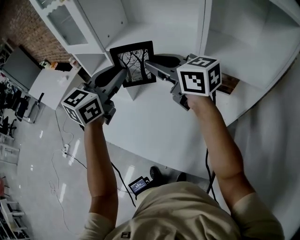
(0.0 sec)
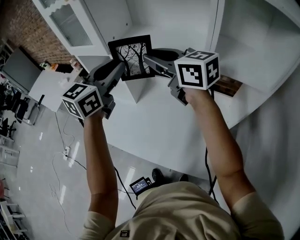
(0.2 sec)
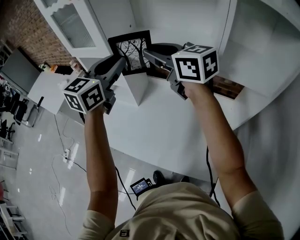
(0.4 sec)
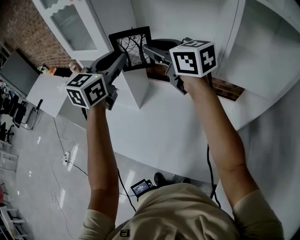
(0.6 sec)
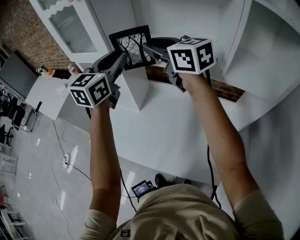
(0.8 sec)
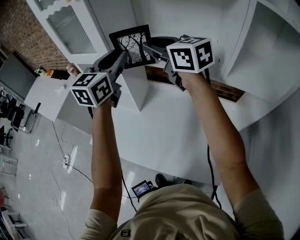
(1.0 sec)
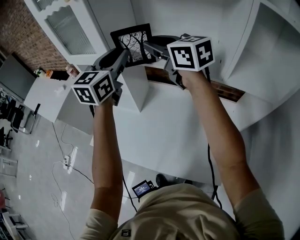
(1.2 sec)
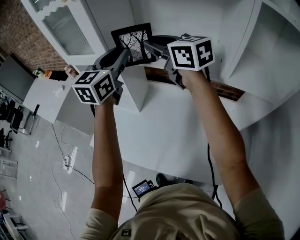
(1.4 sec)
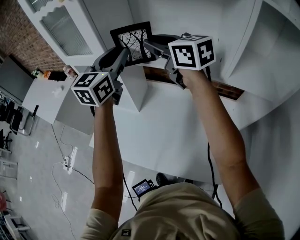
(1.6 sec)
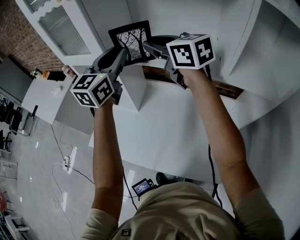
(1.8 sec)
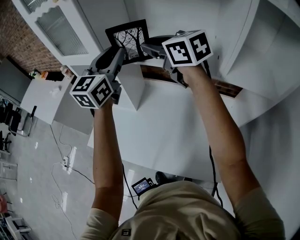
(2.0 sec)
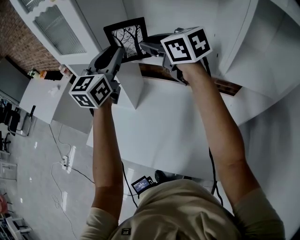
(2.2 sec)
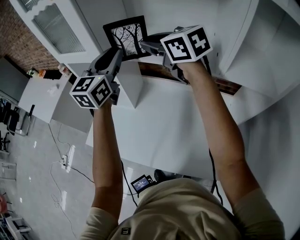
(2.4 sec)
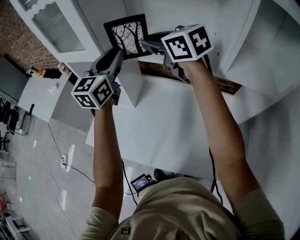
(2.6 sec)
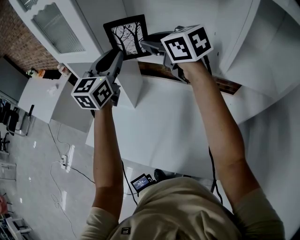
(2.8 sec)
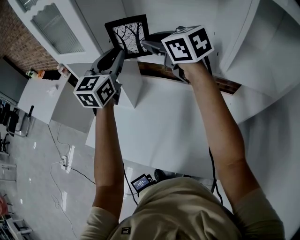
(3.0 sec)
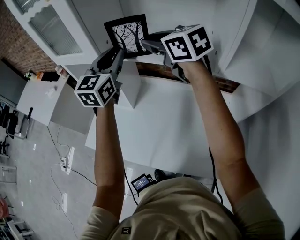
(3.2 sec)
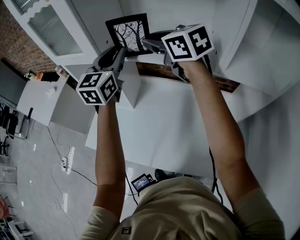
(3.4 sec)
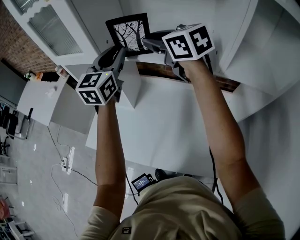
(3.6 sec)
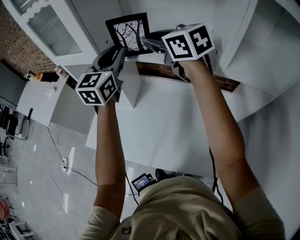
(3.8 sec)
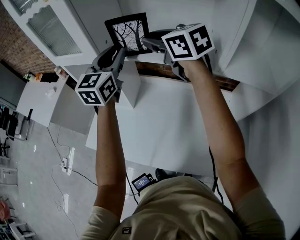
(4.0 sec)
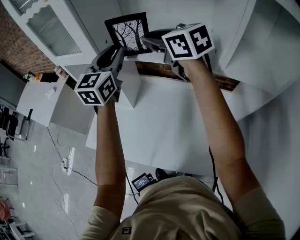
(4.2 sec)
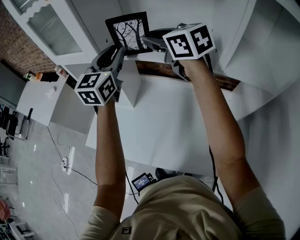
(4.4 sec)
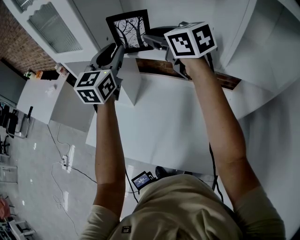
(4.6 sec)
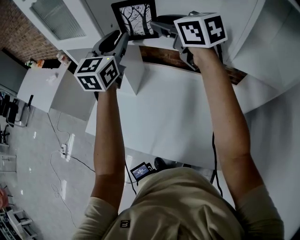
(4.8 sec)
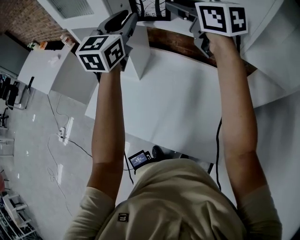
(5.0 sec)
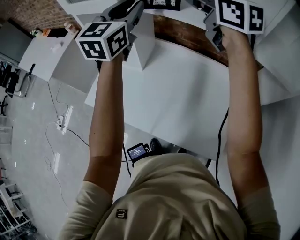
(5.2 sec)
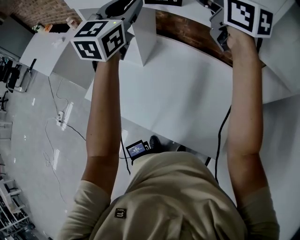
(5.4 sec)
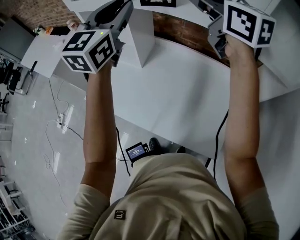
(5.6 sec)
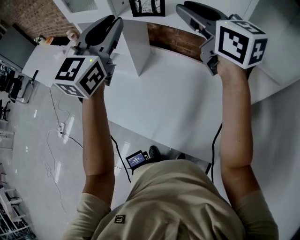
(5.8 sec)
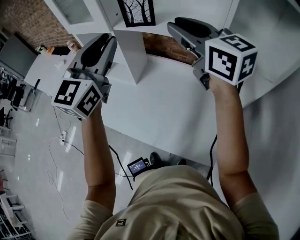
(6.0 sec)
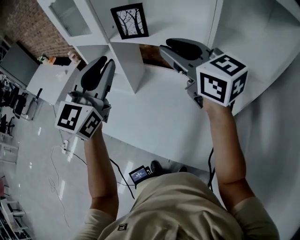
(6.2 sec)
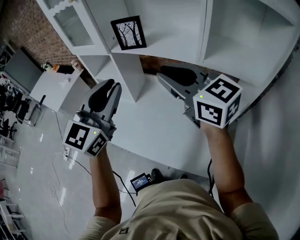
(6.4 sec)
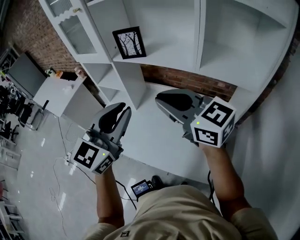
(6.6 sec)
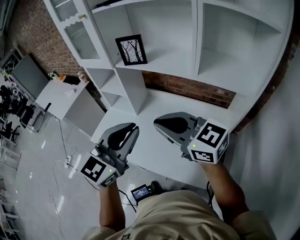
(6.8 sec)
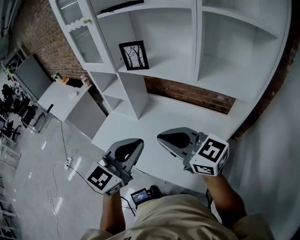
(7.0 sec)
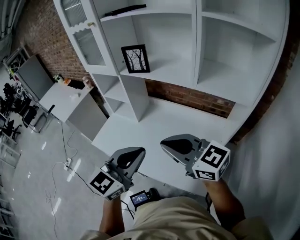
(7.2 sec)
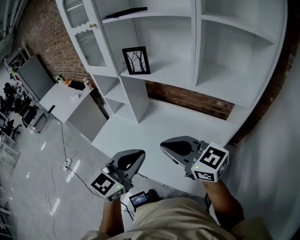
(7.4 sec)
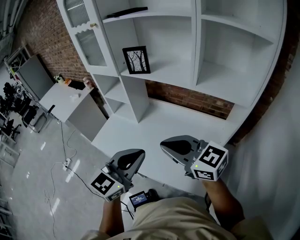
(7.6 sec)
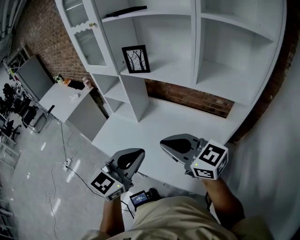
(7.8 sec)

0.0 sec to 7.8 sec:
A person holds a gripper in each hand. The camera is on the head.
0.0 sec to 1.6 sec: The two grippers go about 15 cm forward.
1.6 sec to 3.2 sec: The grippers make only small movements.
3.2 sec to 4.6 sec: Both grippers stay put.
4.6 sec to 6.2 sec: The two grippers go approximately 20 cm backward.
6.2 sec to 7.8 sec: The left gripper is displaced backward and downward by some 25 cm, while the right gripper shifts some 20 cm backward, changes its angle by approximately 20 degrees, and closes up.

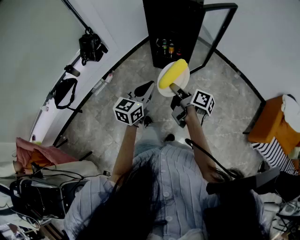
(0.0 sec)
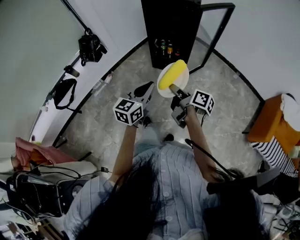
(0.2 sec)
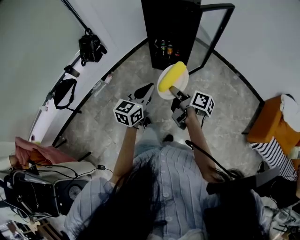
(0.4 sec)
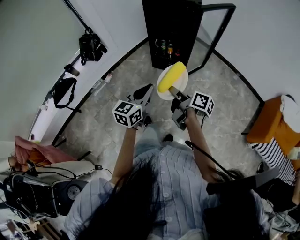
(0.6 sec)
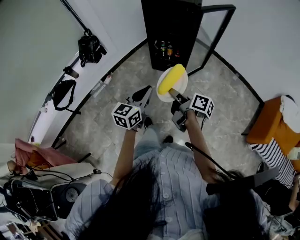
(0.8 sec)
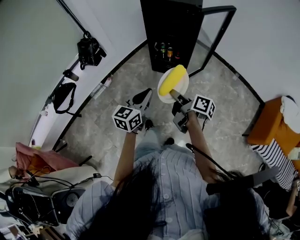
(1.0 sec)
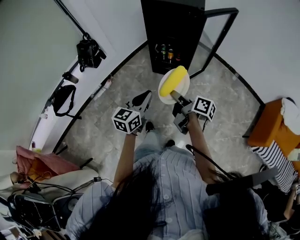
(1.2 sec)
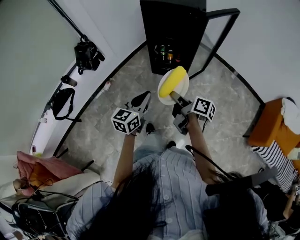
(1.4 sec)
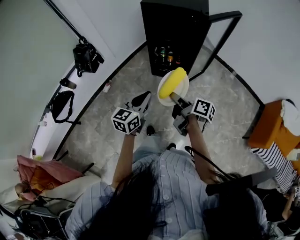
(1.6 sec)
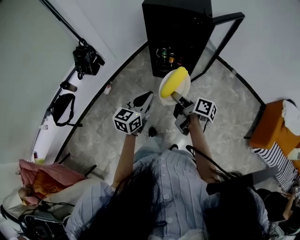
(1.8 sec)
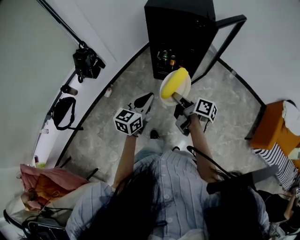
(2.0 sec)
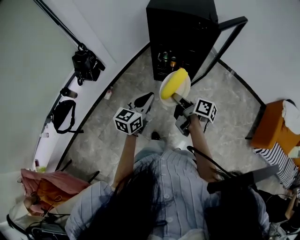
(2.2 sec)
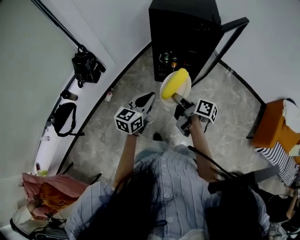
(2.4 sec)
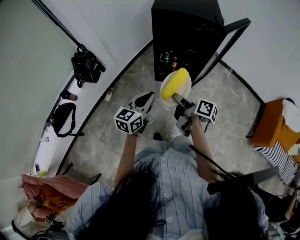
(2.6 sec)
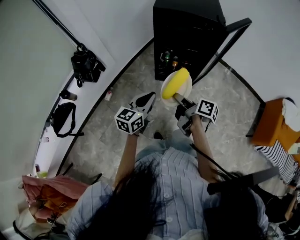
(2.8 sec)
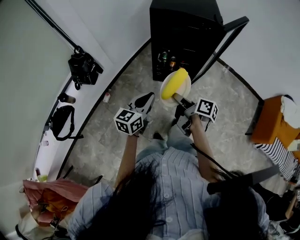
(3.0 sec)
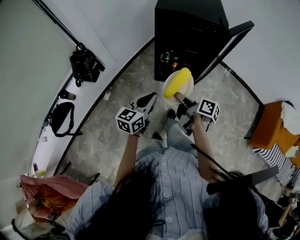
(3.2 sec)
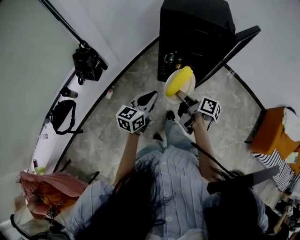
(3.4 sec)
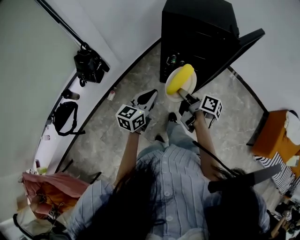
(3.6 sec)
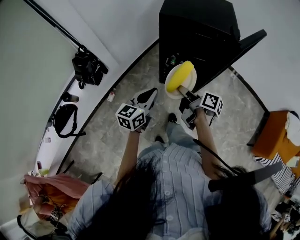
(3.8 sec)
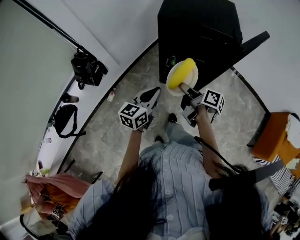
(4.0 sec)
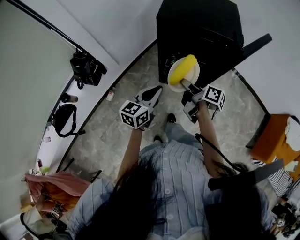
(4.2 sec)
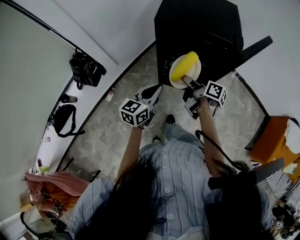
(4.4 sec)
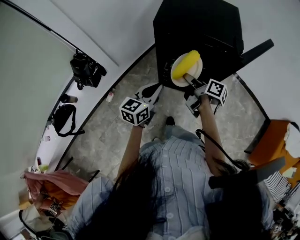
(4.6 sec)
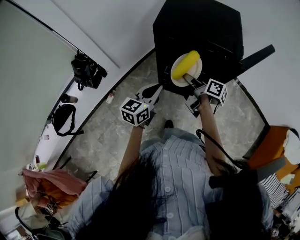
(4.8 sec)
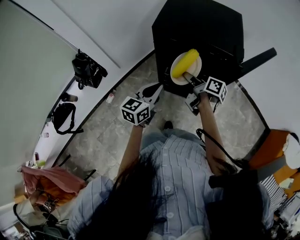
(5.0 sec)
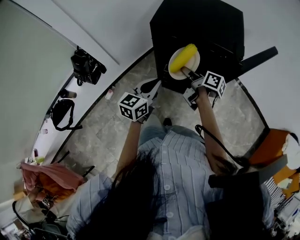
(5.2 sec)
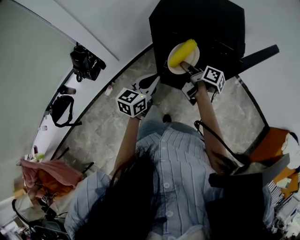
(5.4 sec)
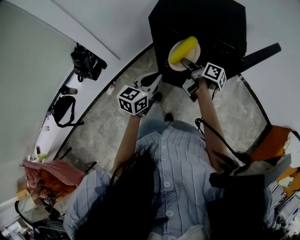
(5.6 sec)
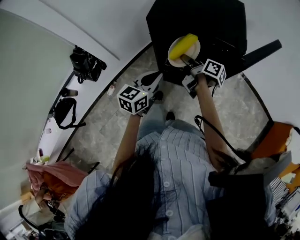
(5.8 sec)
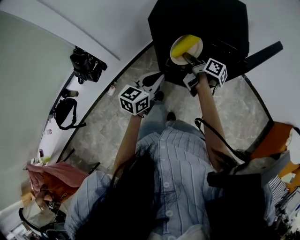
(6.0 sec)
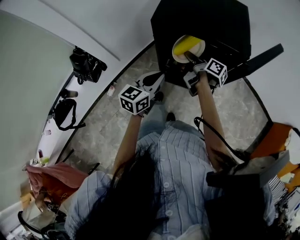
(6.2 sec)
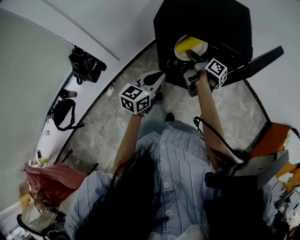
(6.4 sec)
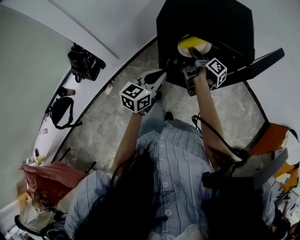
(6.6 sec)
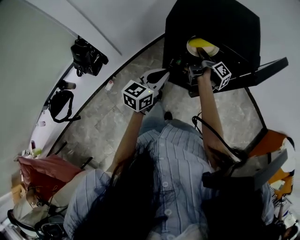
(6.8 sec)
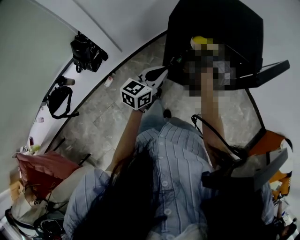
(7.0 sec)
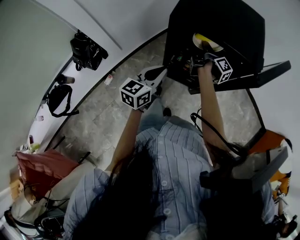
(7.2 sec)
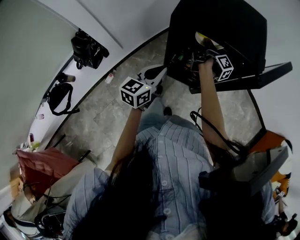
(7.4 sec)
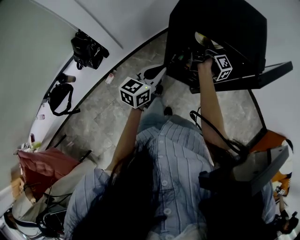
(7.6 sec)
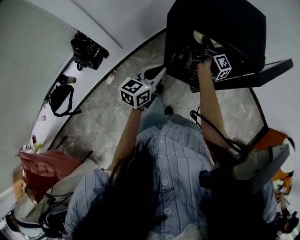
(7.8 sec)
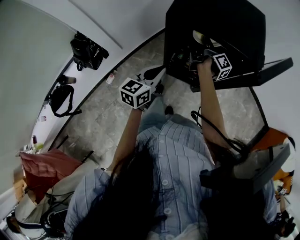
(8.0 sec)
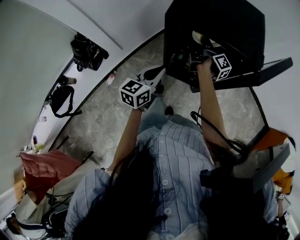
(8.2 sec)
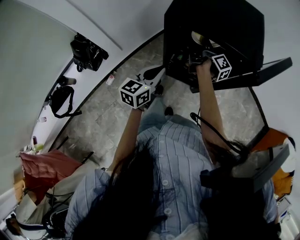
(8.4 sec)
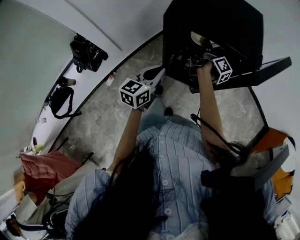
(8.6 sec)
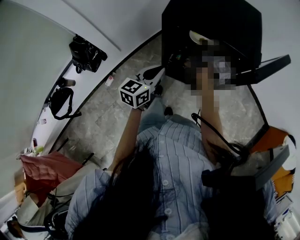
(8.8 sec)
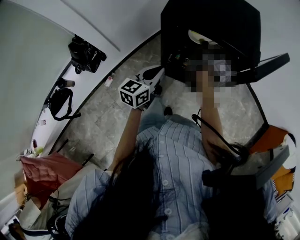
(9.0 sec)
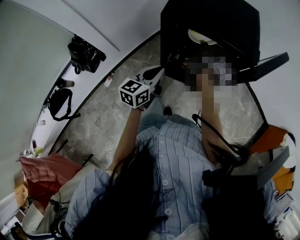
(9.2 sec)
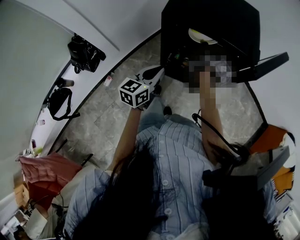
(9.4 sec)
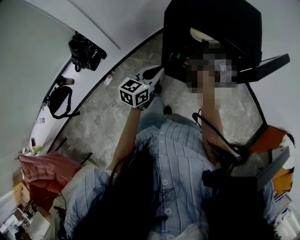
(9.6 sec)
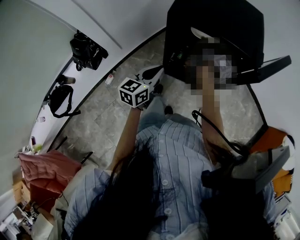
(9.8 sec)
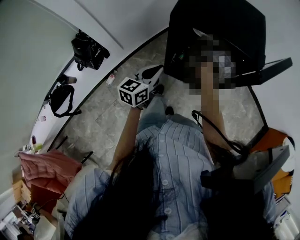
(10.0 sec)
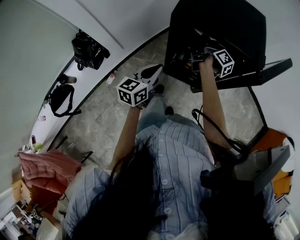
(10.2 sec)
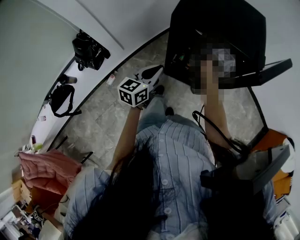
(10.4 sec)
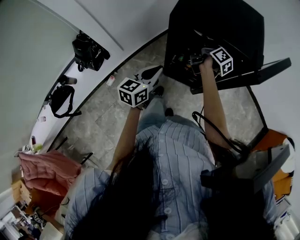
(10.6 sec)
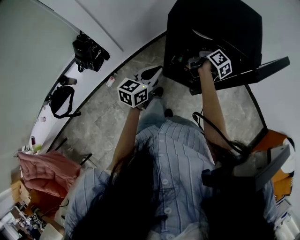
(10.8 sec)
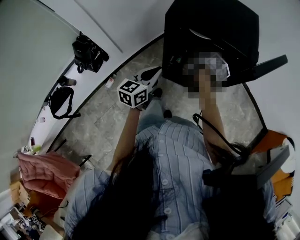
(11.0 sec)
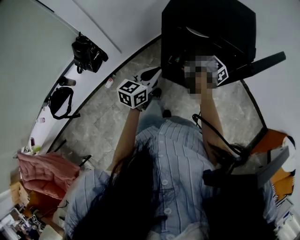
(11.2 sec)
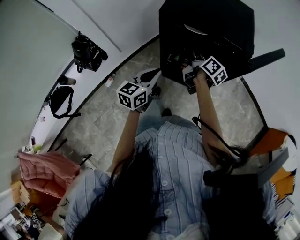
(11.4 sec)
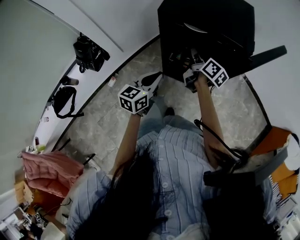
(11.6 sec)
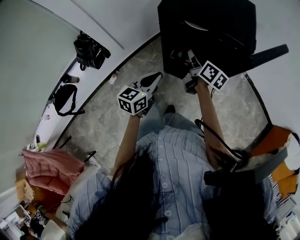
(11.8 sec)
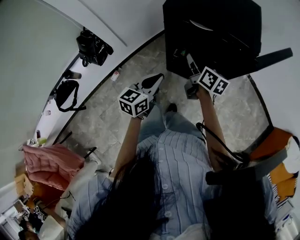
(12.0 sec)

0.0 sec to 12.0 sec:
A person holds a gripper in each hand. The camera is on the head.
0.0 sec to 1.6 sec: Both grippers travel together forward, approximately 10 cm.
1.6 sec to 3.0 sec: The right gripper shifts some 10 cm to the left and forward; the left gripper shifts about 15 cm forward and to the left.
3.0 sec to 4.4 sec: Both grippers move forward, roughly 20 cm.
4.4 sec to 6.0 sec: The right gripper moves forward, approximately 15 cm; the left gripper shifts approximately 5 cm forward.
6.0 sec to 7.6 sec: The right gripper shifts roughly 10 cm forward, and changes its angle by about 30 degrees. Meanwhile the left gripper shifts by about 5 cm.
7.6 sec to 10.4 sec: The grippers move only a little.
10.4 sec to 12.0 sec: The right gripper heads backward, covering approximately 15 cm, and swivels approximately 40 degrees, while the left gripper goes about 5 cm backward.

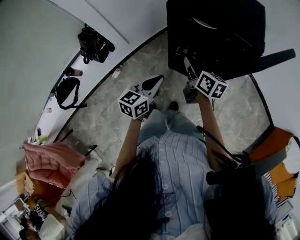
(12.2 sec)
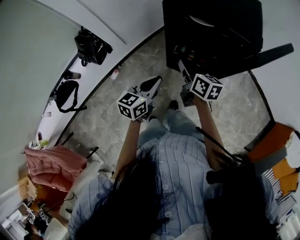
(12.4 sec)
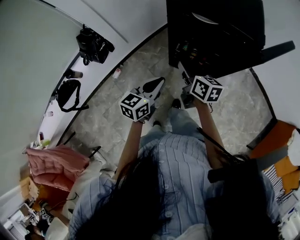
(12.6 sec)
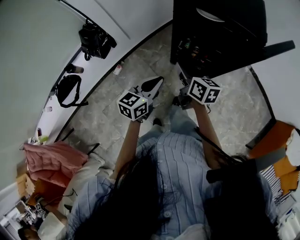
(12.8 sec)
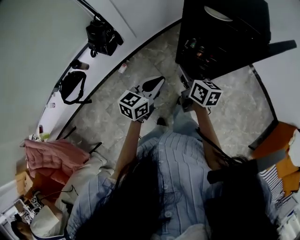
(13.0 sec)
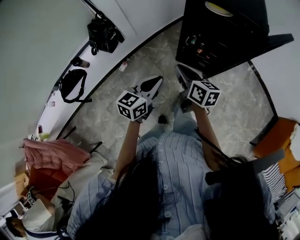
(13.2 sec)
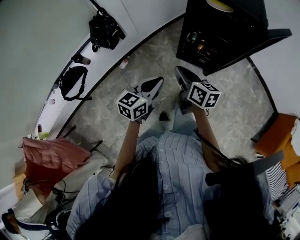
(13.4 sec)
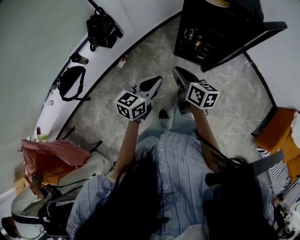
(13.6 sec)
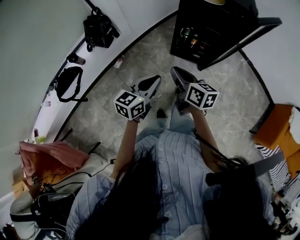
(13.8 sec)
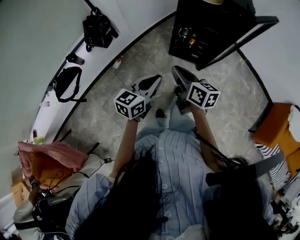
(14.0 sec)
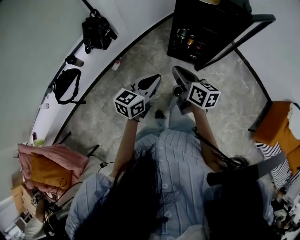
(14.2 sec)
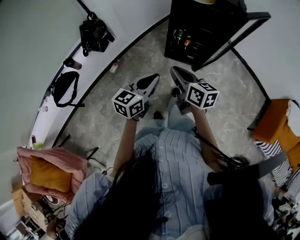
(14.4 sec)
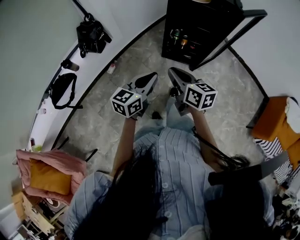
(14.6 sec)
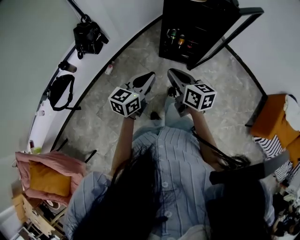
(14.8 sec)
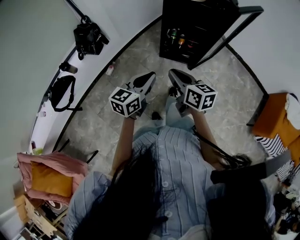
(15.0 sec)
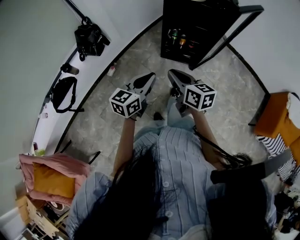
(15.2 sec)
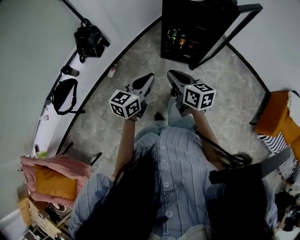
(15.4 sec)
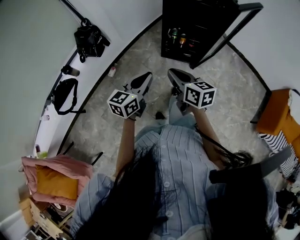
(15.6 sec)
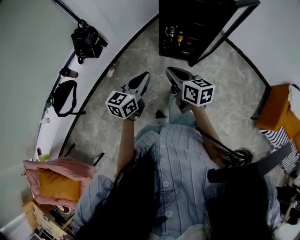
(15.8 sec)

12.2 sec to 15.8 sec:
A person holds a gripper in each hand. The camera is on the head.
12.2 sec to 14.0 sec: The two grippers go about 30 cm backward and to the left.
14.0 sec to 15.8 sec: The grippers move only a little.
